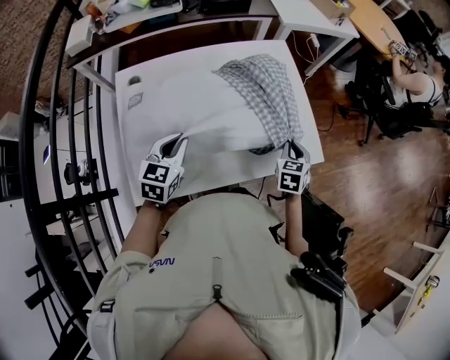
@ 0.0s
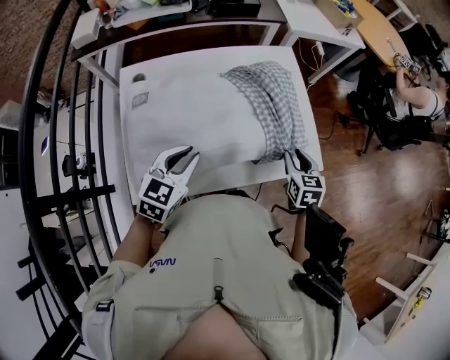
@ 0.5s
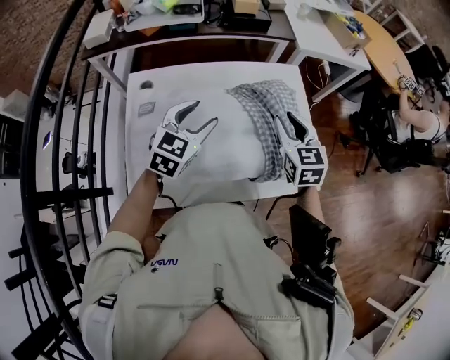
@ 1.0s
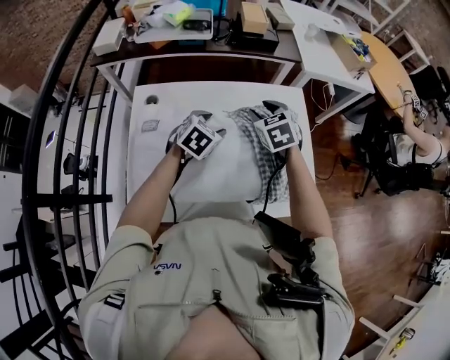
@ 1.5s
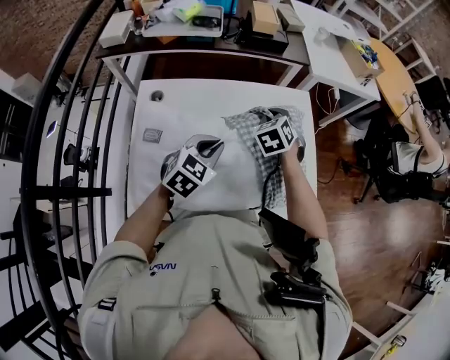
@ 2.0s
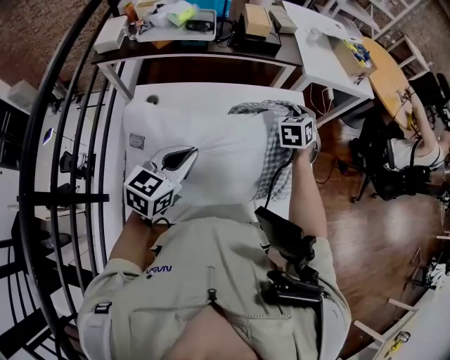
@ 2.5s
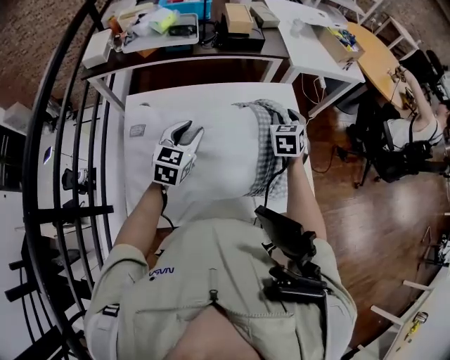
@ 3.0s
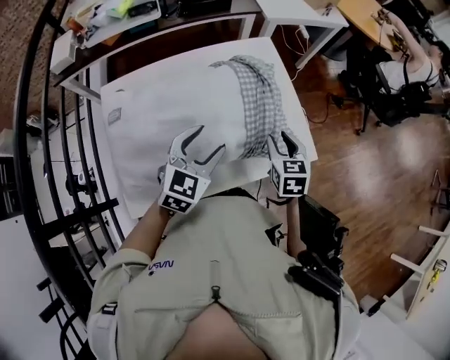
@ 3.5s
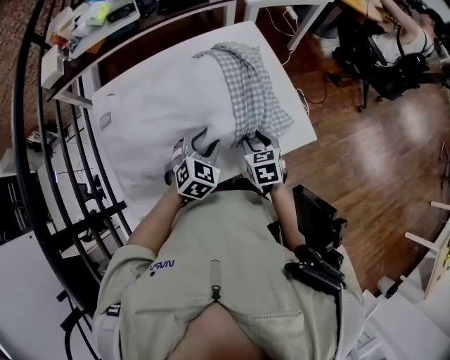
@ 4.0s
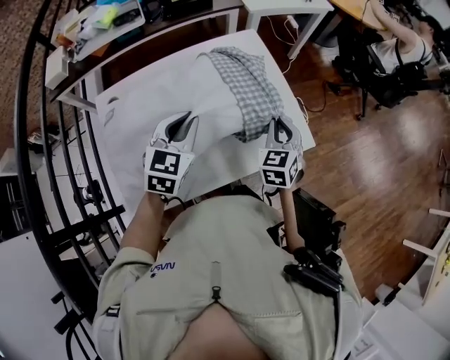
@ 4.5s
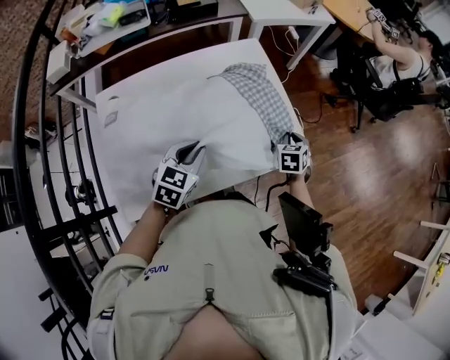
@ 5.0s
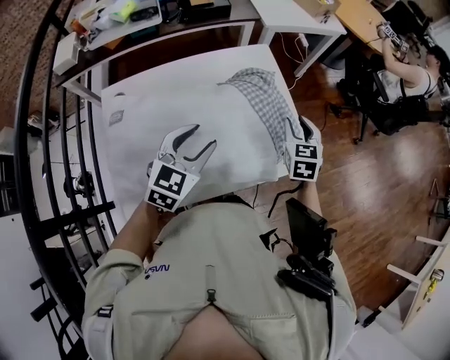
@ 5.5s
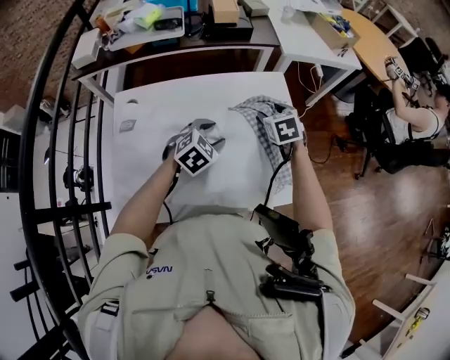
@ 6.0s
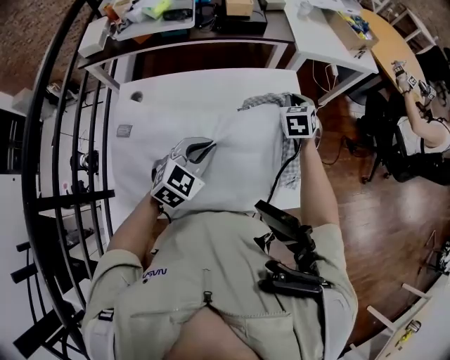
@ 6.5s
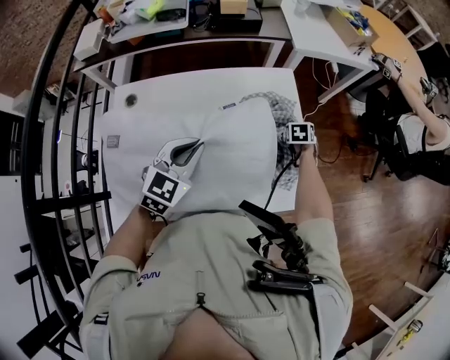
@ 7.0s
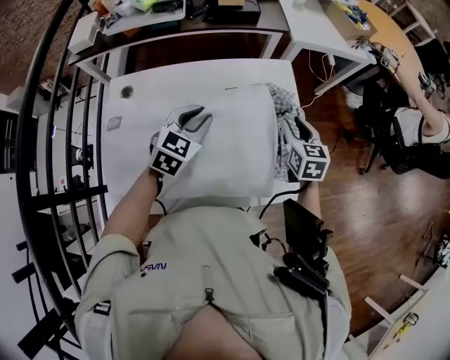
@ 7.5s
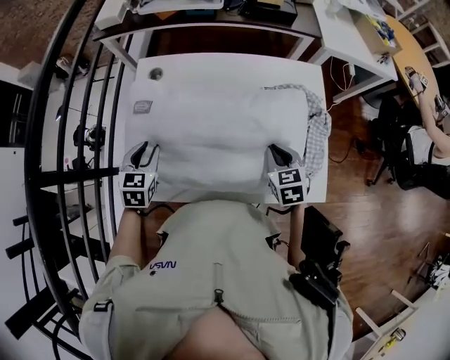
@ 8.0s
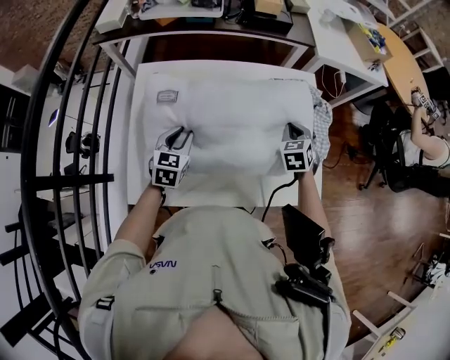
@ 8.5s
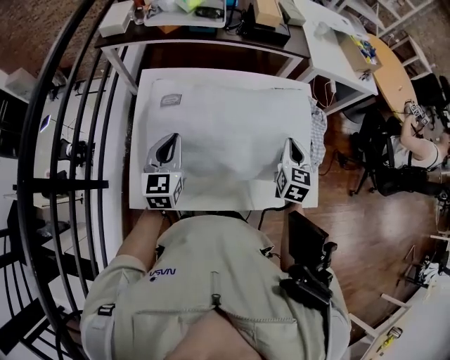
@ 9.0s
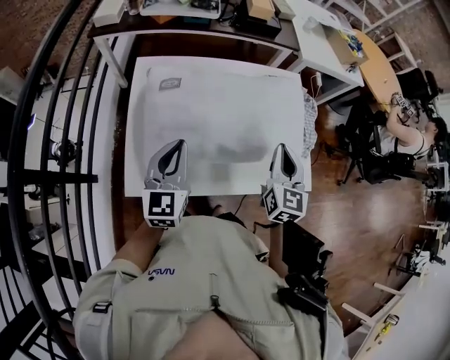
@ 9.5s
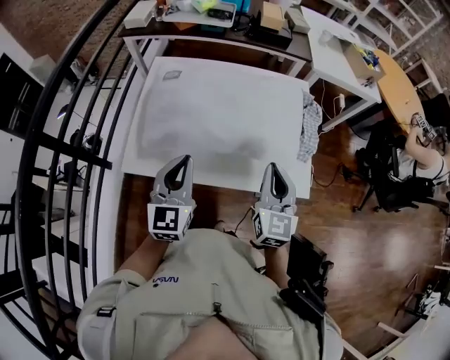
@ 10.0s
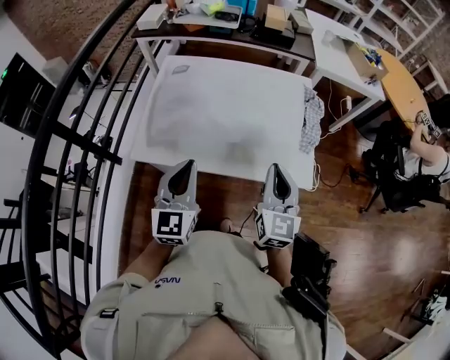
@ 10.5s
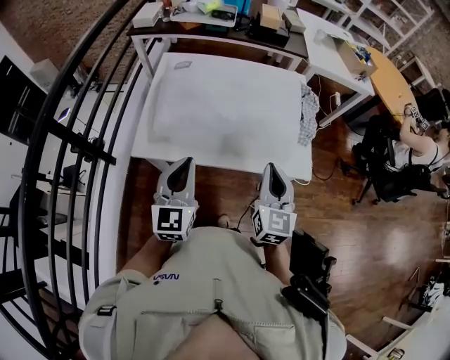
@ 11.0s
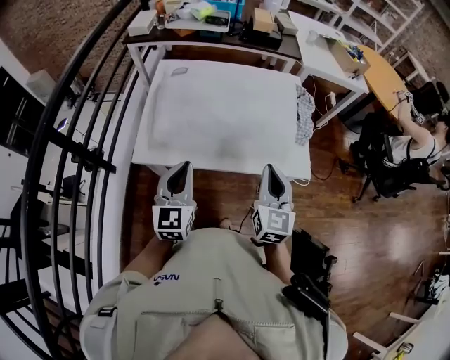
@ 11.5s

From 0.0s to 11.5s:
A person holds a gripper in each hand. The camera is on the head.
From 0.0s to 2.0s: The right gripper goes some 30 cm to the left, forward and upward, turns by approximately 40 degrees, and opens and closes again. The left gripper swings forward and backward, about 20 cm each way, with 2 reversals, and opens, then closes once more.
From 2.0s to 4.0s: The left gripper heads downward, to the right and backward, covering approximately 15 cm, and opens, while the right gripper moves backward, to the right and downward, about 30 cm, turns by about 40 degrees, and opens.
From 4.0s to 6.0s: The right gripper goes about 25 cm forward, and closes, then reopens, while the left gripper goes up and down, about 15 cm each way, reversing 3 times, and closes and opens again.
From 6.0s to 7.5s: The left gripper is displaced upward by some 5 cm, swivels approximately 20 degrees, and closes its fingers. Meanwhile the right gripper is displaced to the right by about 10 cm, travels downward and back again, approximately 15 cm each way, changes its angle by approximately 20 degrees, and closes.
From 7.5s to 9.5s: The left gripper goes about 25 cm backward and to the left, and rotates about 40 degrees. Meanwhile the right gripper swings forward and backward, roughly 15 cm each way, with 2 reversals, changes its angle by about 20 degrees, and closes up.
From 9.5s to 11.5s: The grippers both shift backward by approximately 20 cm.

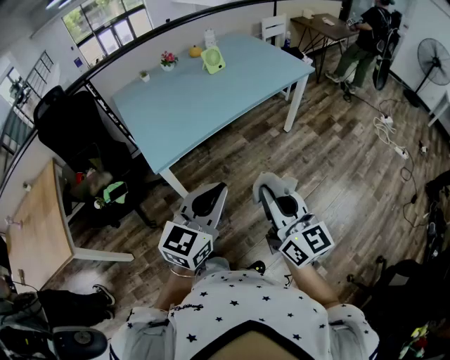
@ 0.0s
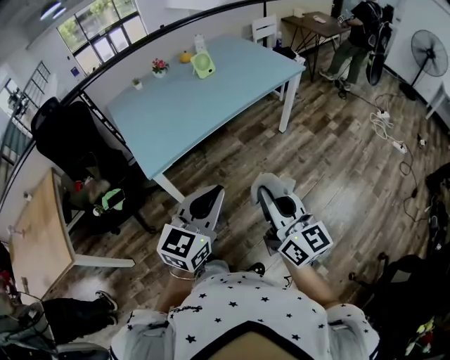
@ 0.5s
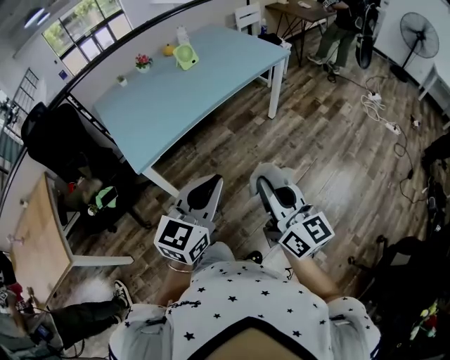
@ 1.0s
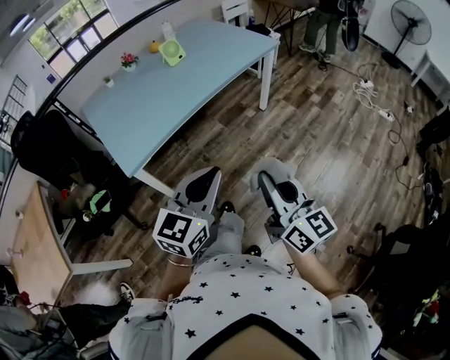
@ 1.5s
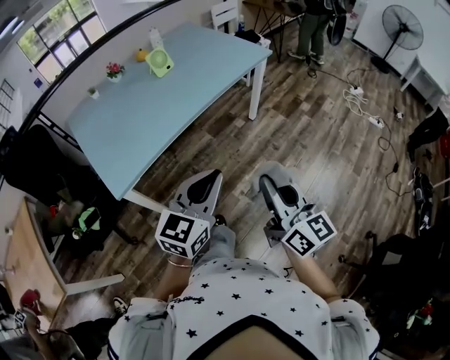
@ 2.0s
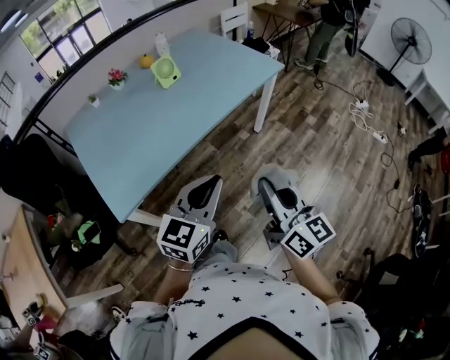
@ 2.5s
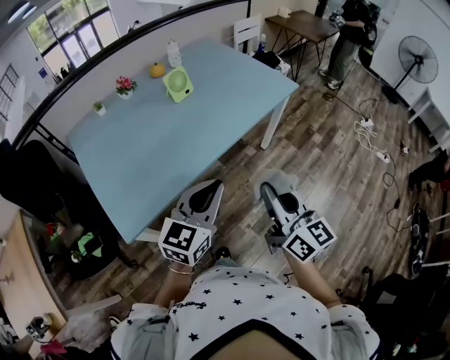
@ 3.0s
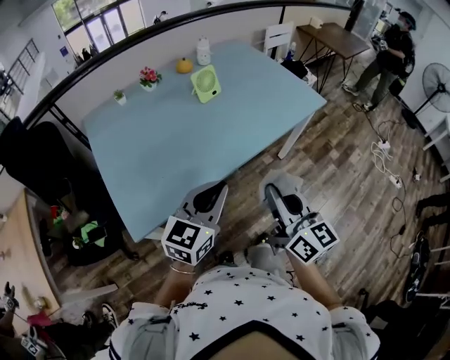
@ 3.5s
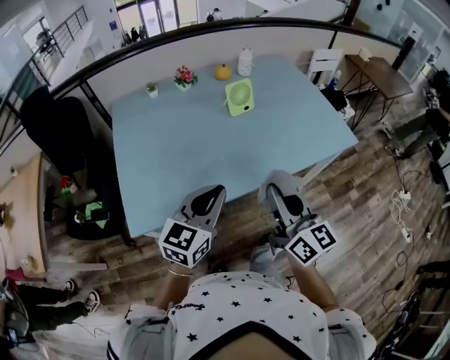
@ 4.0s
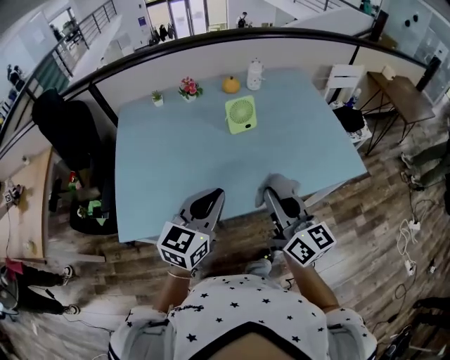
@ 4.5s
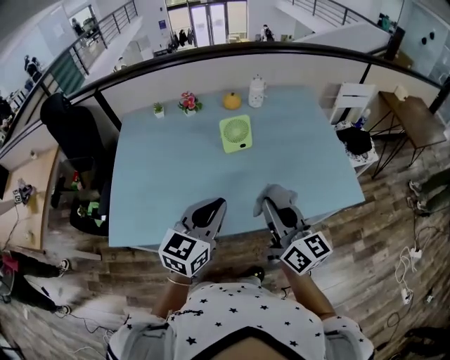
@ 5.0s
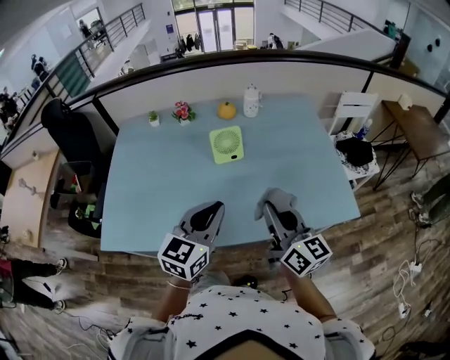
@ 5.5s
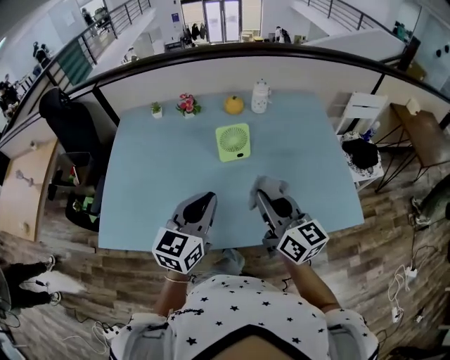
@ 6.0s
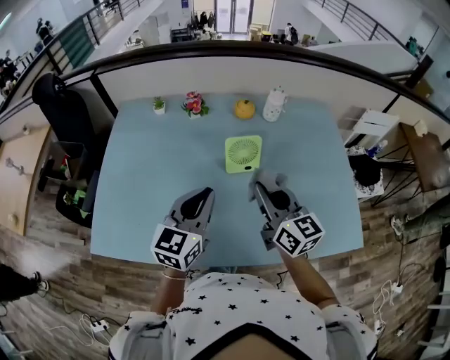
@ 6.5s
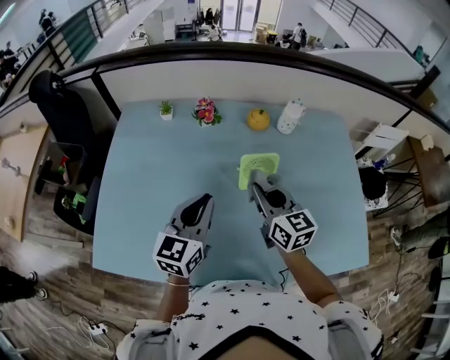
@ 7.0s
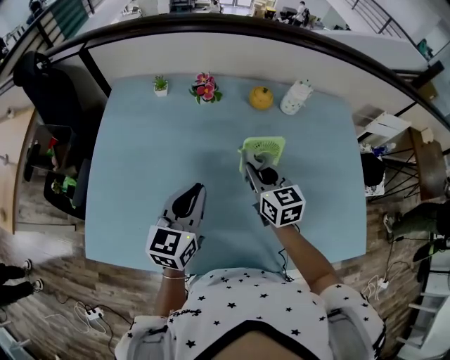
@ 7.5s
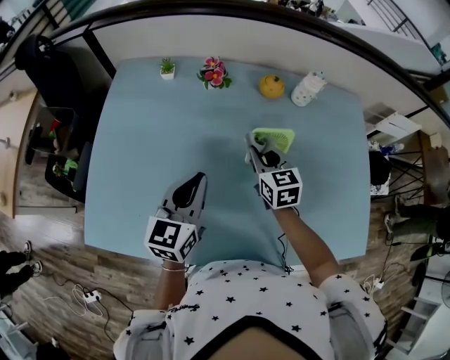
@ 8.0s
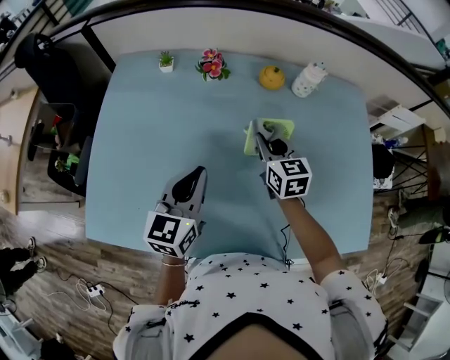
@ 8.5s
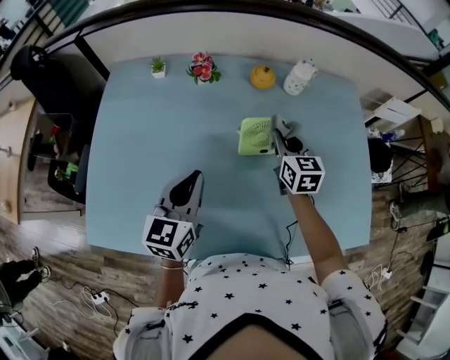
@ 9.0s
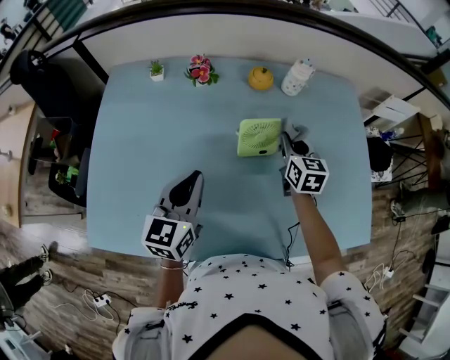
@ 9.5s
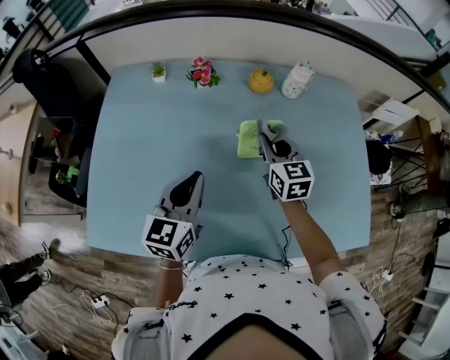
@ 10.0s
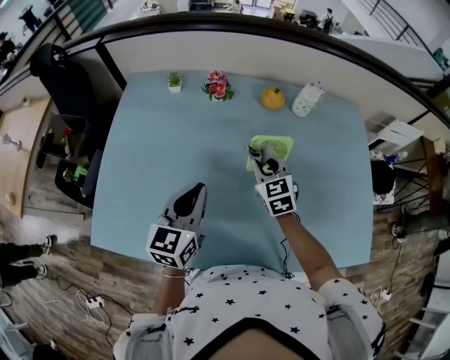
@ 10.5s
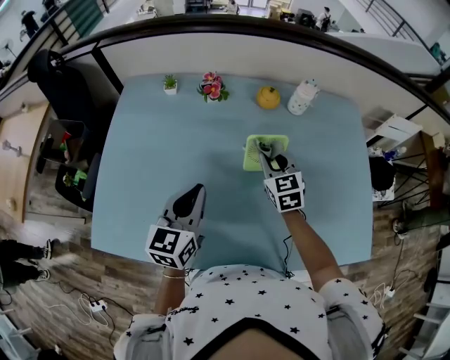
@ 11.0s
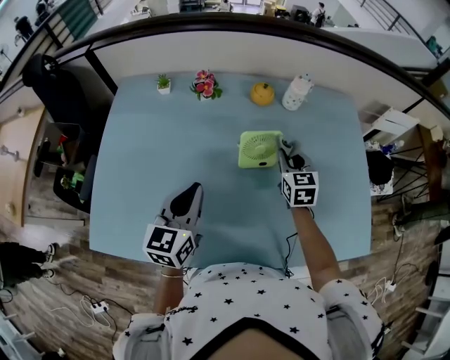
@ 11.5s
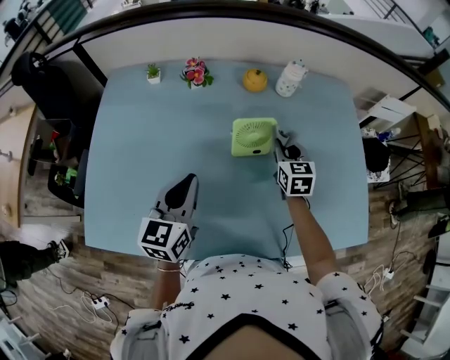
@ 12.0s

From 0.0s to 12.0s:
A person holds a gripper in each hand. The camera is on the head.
From 0.0s to 2.0s: The right gripper is displaced to the right and forward by some 15 cm. The left gripper travels forward and to the right by some 15 cm.
From 2.0s to 4.0s: Both grippers move forward and to the left, roughly 35 cm. The left gripper changes its angle by approximately 20 degrees. Meanwhile the right gripper swivels about 20 degrees.
From 4.0s to 6.0s: The grippers both shift forward and to the right by about 25 cm. The left gripper swivels some 20 degrees, while the right gripper changes its angle by about 20 degrees.
From 6.0s to 8.0s: The right gripper moves forward and downward, approximately 30 cm, and angles its fingers downward, by some 30 degrees. The left gripper travels forward, to the left and downward by some 20 cm.
From 8.0s to 10.0s: The right gripper travels to the right by roughly 5 cm.
From 10.0s to 12.0s: The right gripper heads to the right and downward, covering some 10 cm.

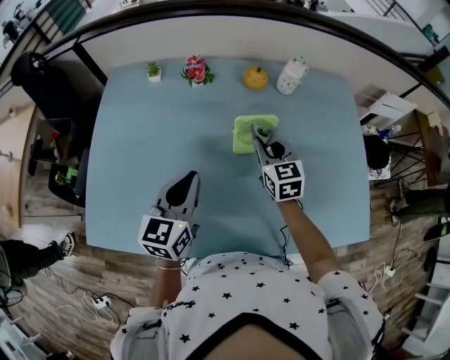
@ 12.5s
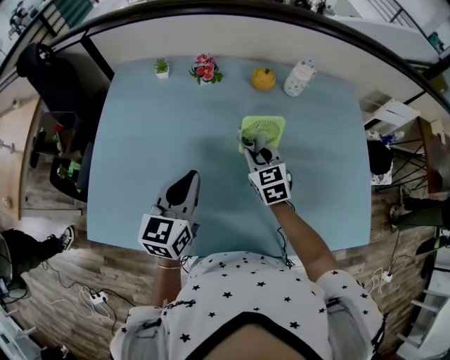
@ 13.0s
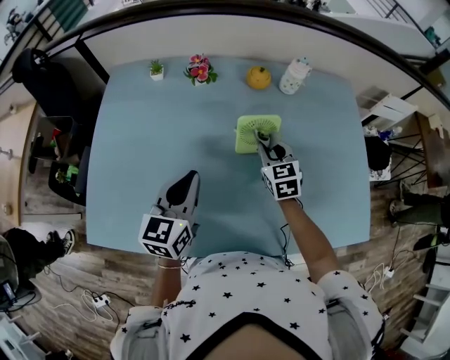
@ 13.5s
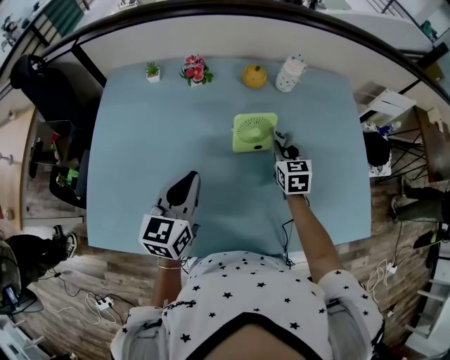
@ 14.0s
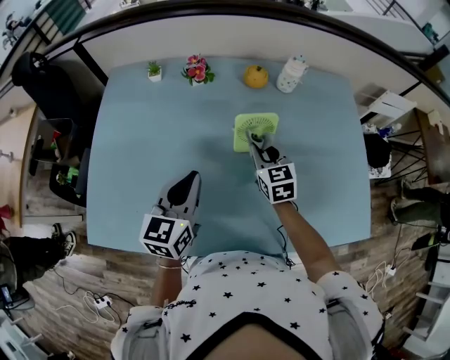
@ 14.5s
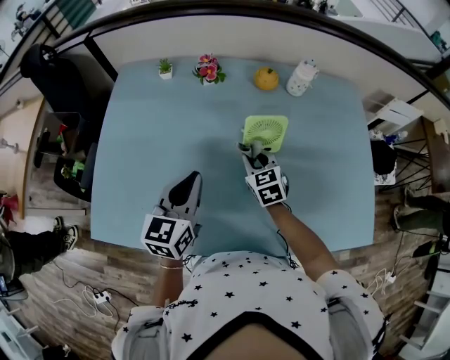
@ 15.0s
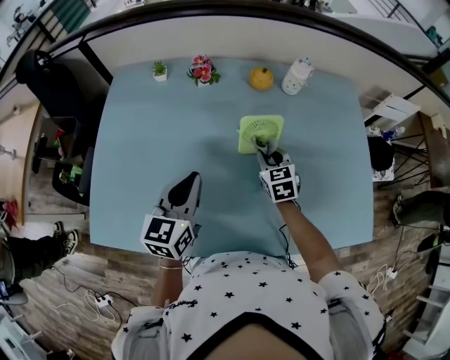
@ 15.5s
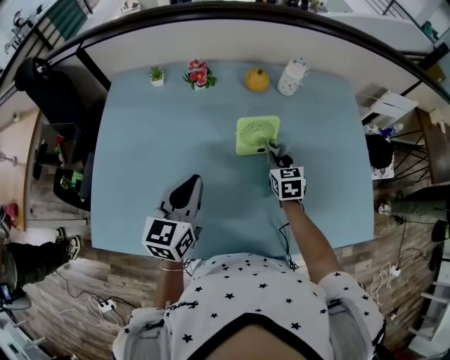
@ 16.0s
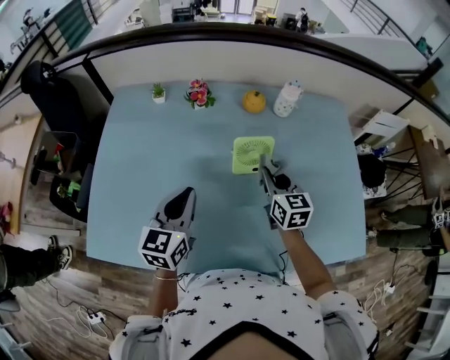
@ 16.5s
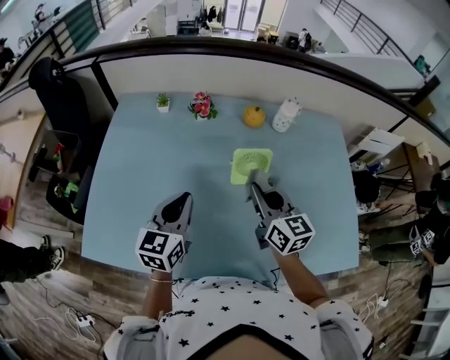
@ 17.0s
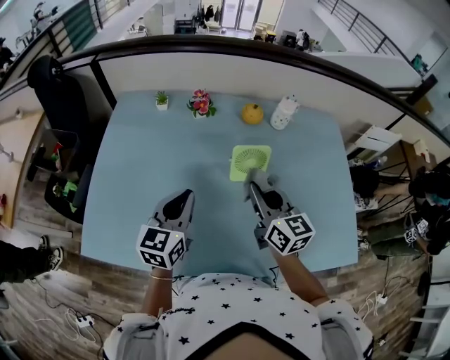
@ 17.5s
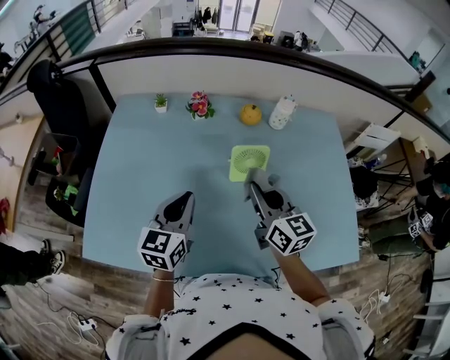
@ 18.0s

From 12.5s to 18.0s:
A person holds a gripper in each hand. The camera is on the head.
From 12.5s to 14.5s: The right gripper moves left and right over about 15 cm, changing direction 2 times.
From 14.5s to 16.0s: The right gripper goes some 10 cm to the right and downward.
From 16.0s to 18.0s: The right gripper heads upward, backward and to the left, covering roughly 20 cm, and tips its fingers upward by approximately 30 degrees.
